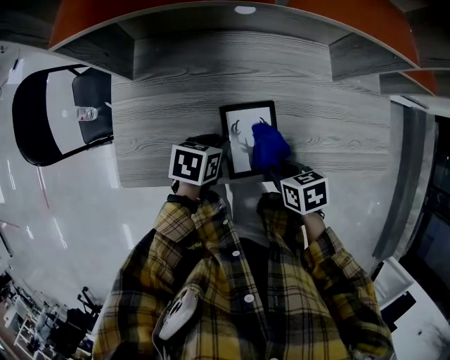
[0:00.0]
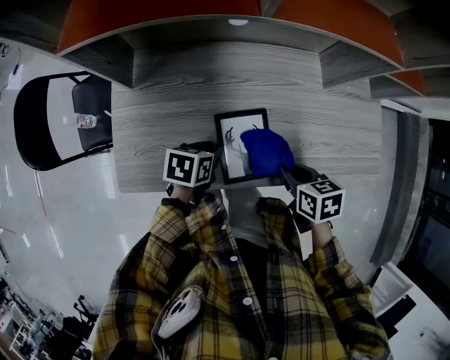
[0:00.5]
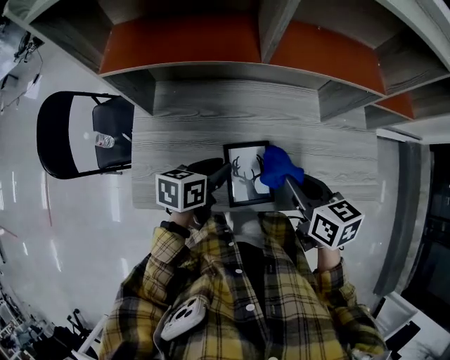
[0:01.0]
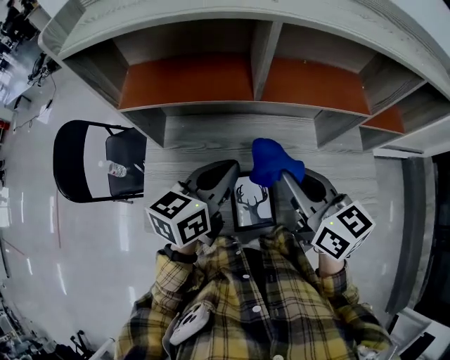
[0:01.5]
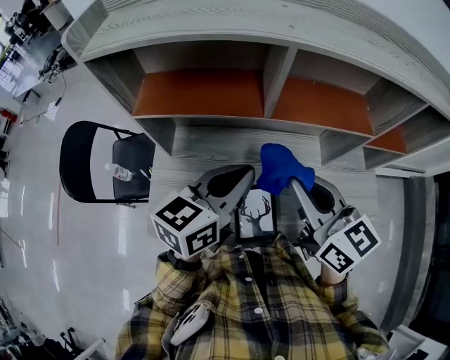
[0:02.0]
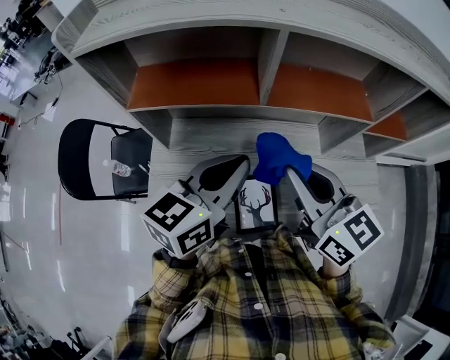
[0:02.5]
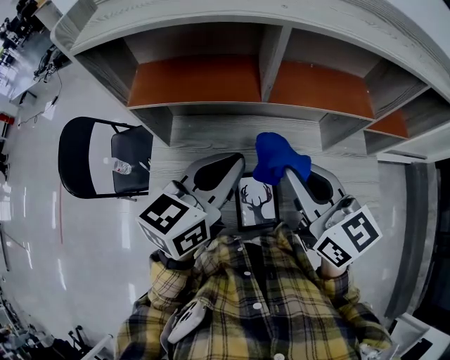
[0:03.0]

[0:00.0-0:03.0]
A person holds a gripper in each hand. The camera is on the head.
0:00.0 to 0:01.5: The right gripper shifts roughly 35 cm upward and forward, and angles its fingers upward, by some 50 degrees. The left gripper shifts about 30 cm upward, tilts its fingers approximately 40 degrees upward, and closes.
0:01.5 to 0:03.0: The left gripper travels upward by about 5 cm.

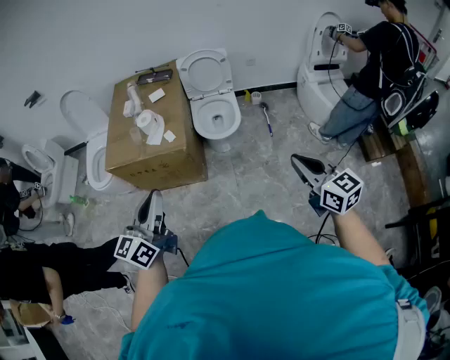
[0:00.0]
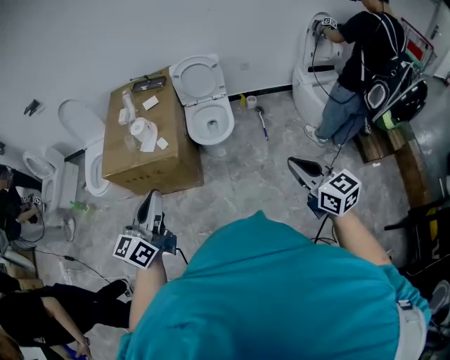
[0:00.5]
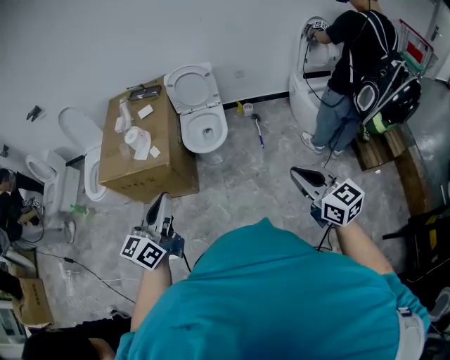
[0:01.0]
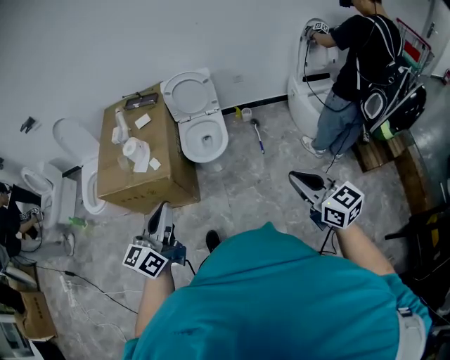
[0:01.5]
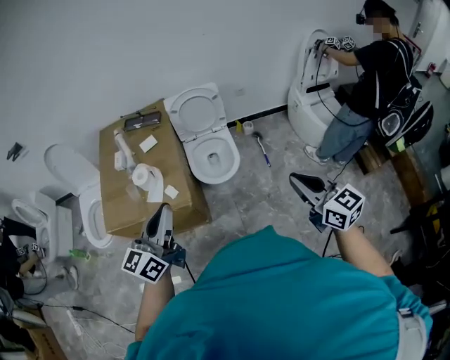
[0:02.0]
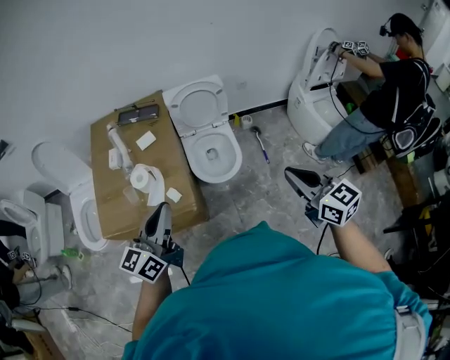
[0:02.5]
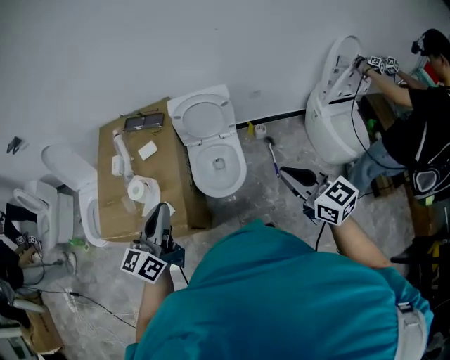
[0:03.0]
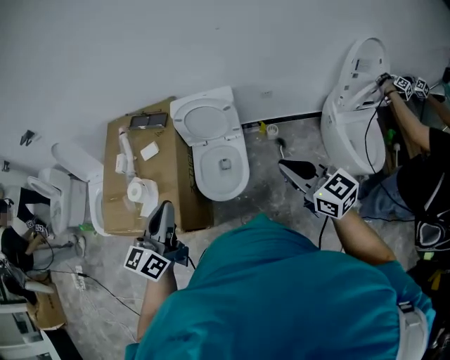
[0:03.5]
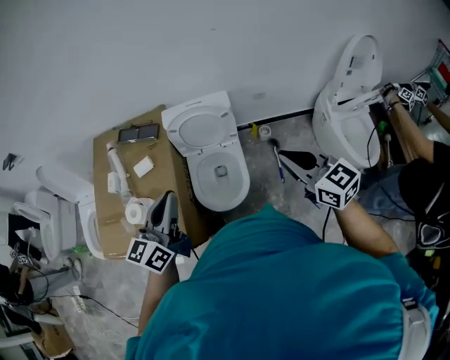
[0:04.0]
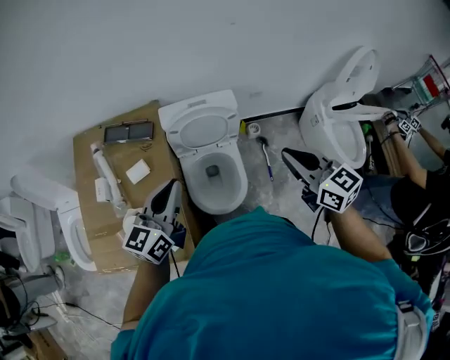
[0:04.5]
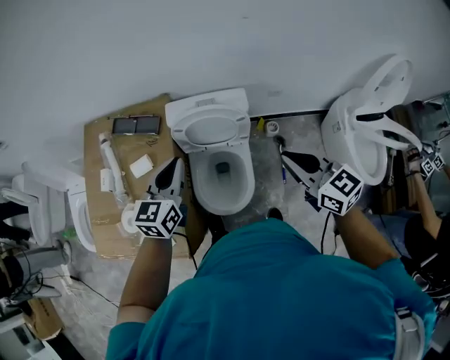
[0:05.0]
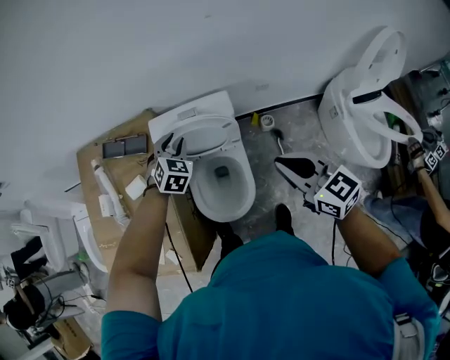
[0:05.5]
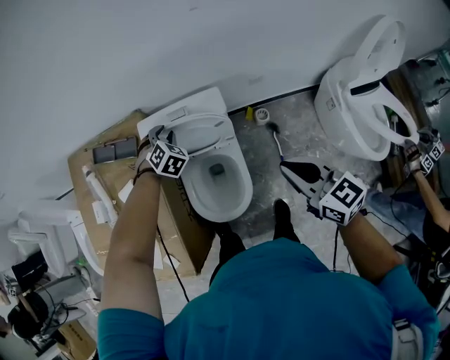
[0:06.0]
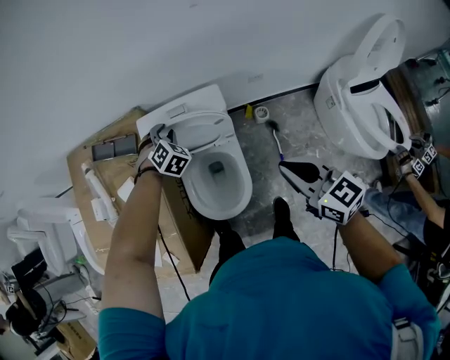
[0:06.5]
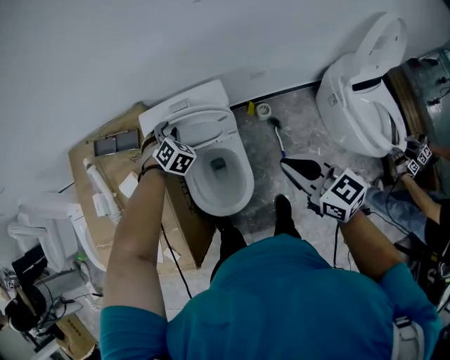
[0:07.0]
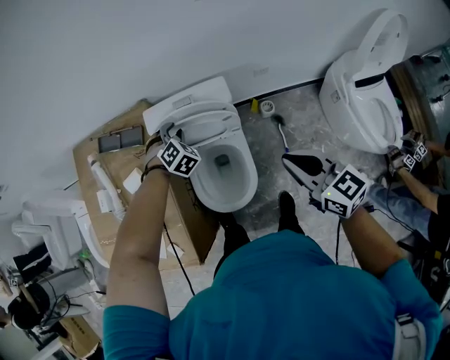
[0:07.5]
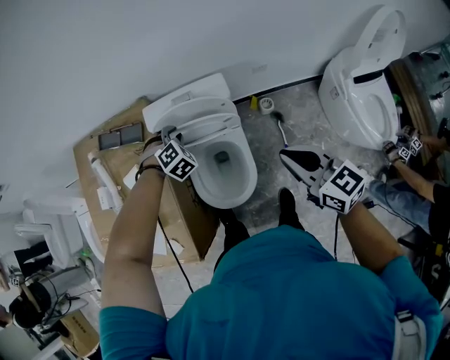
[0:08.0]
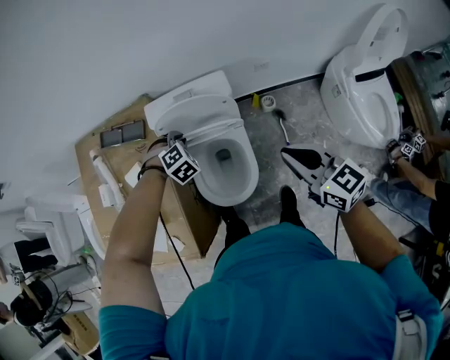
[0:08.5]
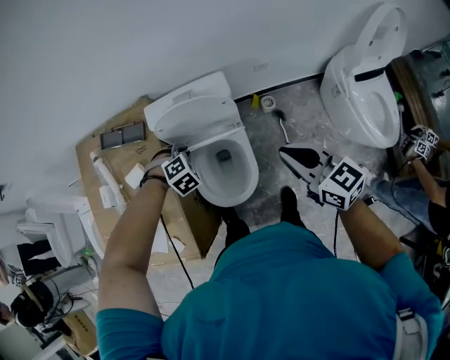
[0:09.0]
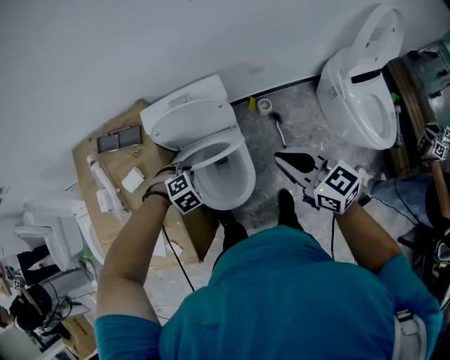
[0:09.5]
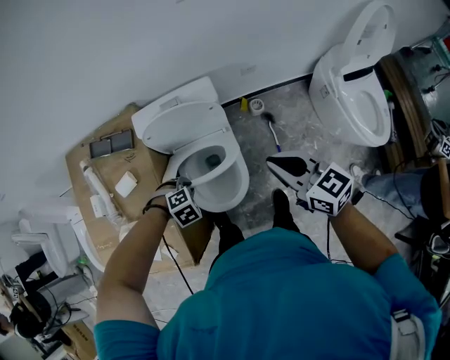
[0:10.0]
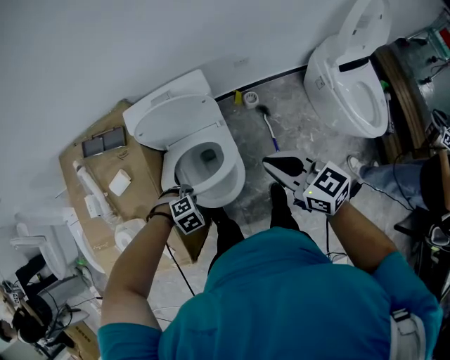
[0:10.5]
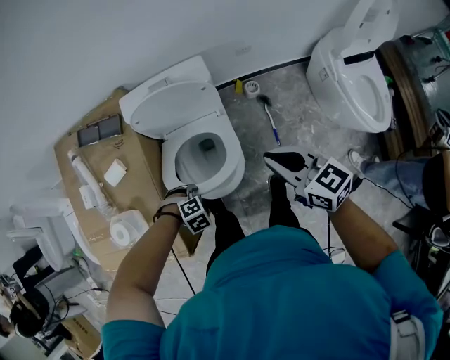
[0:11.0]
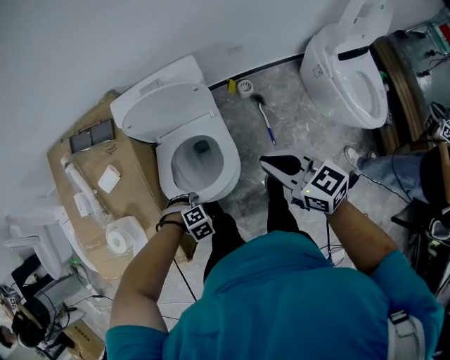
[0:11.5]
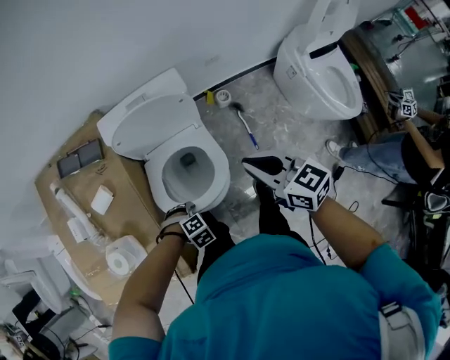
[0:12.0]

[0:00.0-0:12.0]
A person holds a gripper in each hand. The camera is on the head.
0:00.0 to 0:02.0: Both grippers travel together forward, approximately 20 cm.
0:02.0 to 0:04.0: The left gripper heads forward and to the right, covering about 35 cm, while the right gripper travels forward by approximately 40 cm.
0:04.0 to 0:06.0: The left gripper is displaced forward and downward by about 50 cm, angles its fingers downward, by roughly 50 degrees, and opens, while the right gripper is displaced forward and downward by about 20 cm.
0:06.0 to 0:08.0: The left gripper is displaced backward by some 5 cm.
0:08.0 to 0:10.0: The left gripper ends up approximately 20 cm from where it was, and rotates some 30 degrees.
0:10.0 to 0:12.0: The right gripper is displaced downward by some 5 cm; the left gripper ends up approximately 15 cm from where it was.

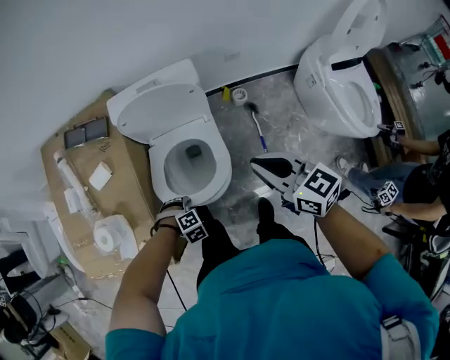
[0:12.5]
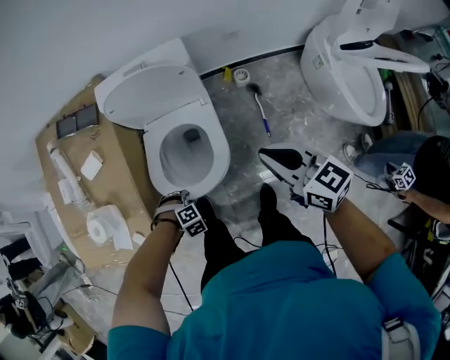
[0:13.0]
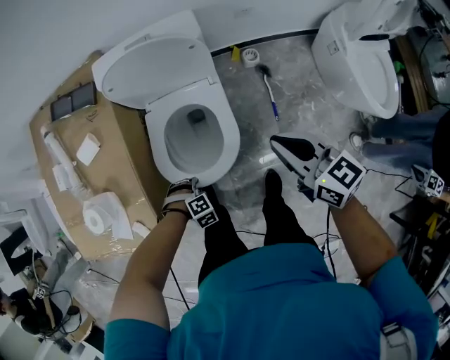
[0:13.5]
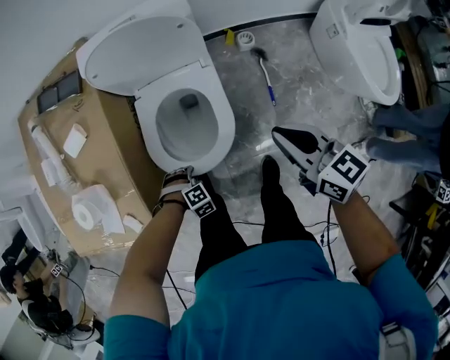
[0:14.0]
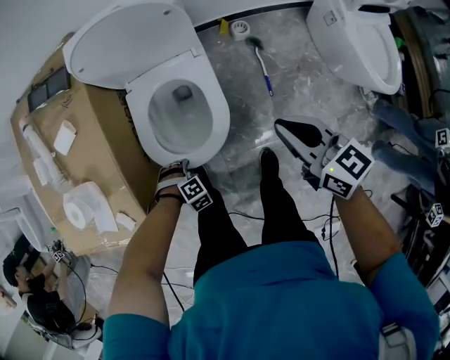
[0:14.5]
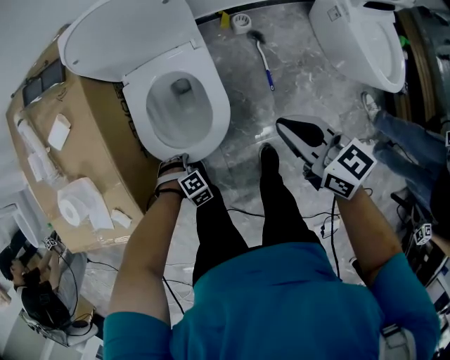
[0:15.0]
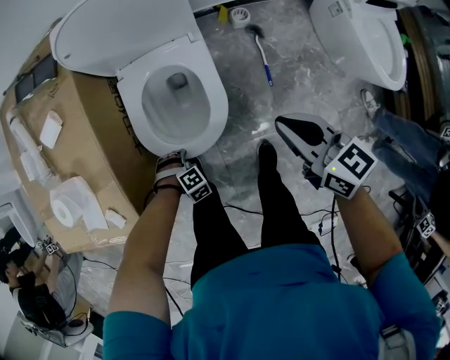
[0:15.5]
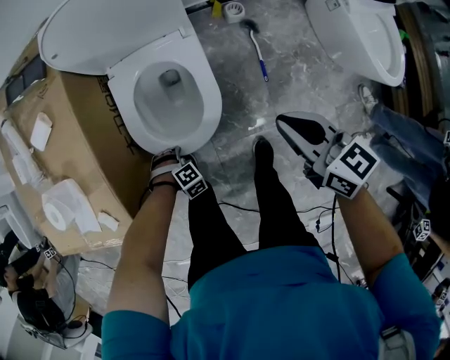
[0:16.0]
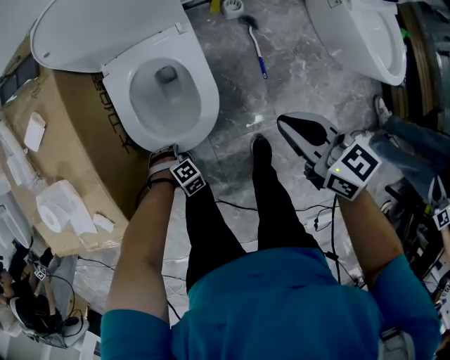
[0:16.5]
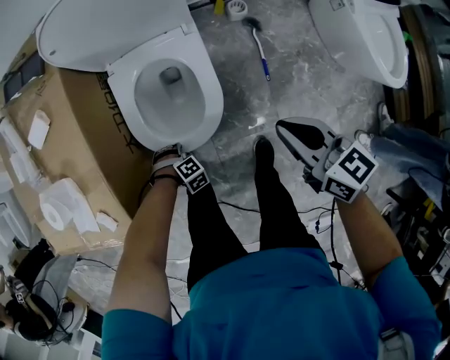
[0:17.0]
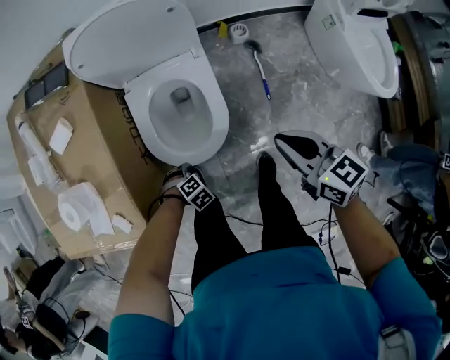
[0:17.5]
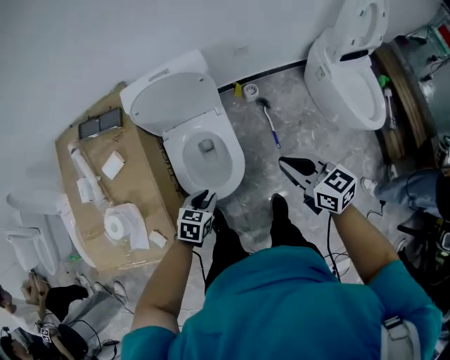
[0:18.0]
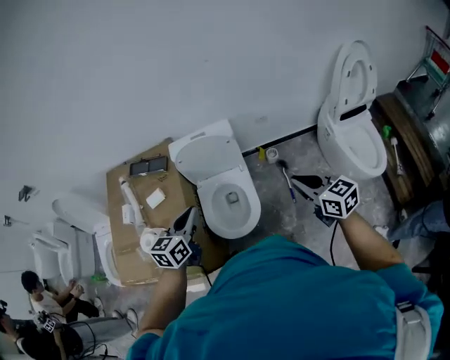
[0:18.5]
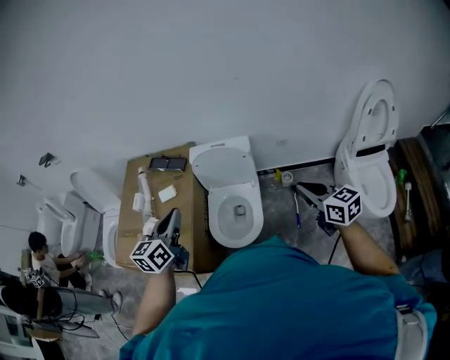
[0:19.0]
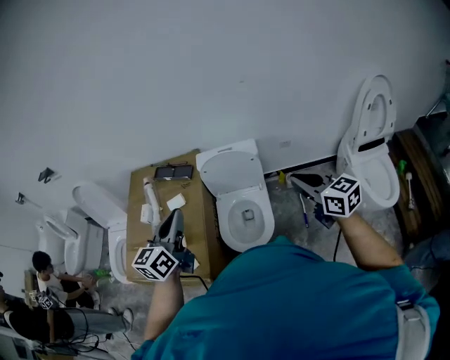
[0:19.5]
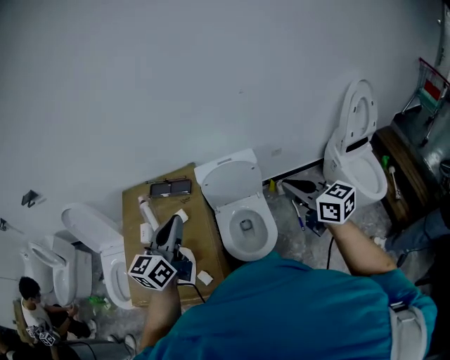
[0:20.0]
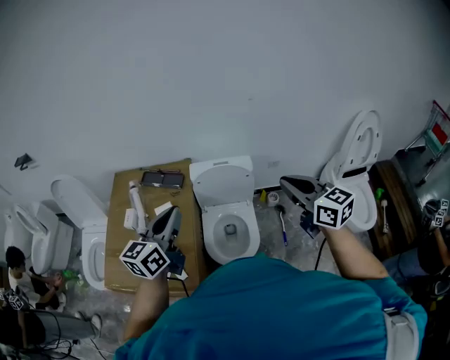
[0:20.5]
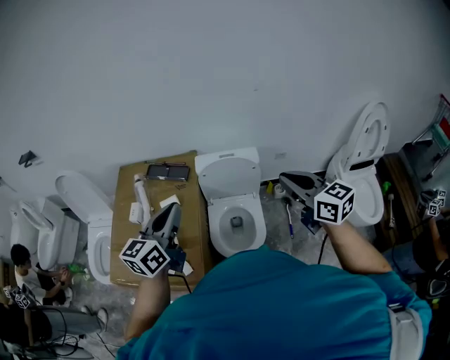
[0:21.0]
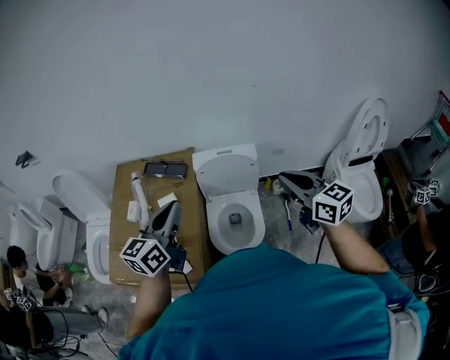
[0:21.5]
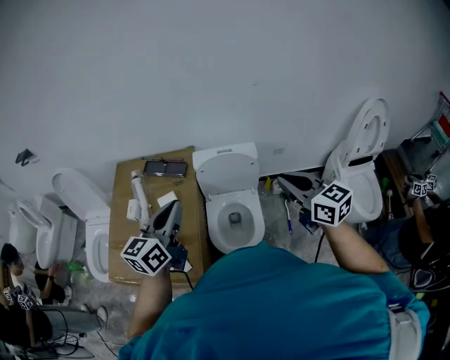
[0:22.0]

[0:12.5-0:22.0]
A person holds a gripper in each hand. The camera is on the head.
0:12.5 to 0:14.5: Both grippers travel together downward, about 15 cm.
0:14.5 to 0:16.5: Both grippers travel together downward, approximately 10 cm.
0:16.5 to 0:18.0: The right gripper is displaced upward by about 15 cm; the left gripper goes approximately 30 cm upward, and swivels roughly 70 degrees.
0:18.0 to 0:20.0: The right gripper travels upward and to the left by approximately 30 cm; the left gripper shifts about 50 cm upward and to the left, tips its fingers upward by about 50 degrees, and closes up.
0:20.0 to 0:22.0: The grippers move only a little.

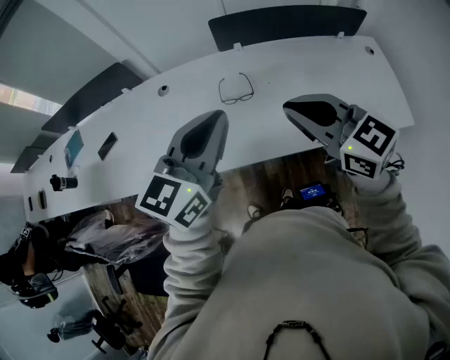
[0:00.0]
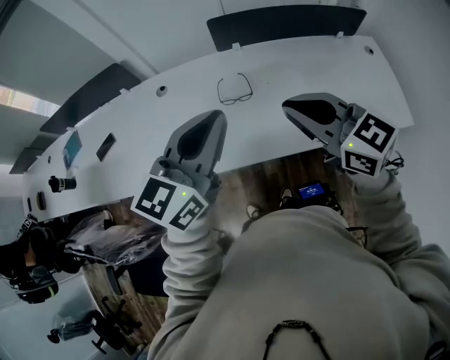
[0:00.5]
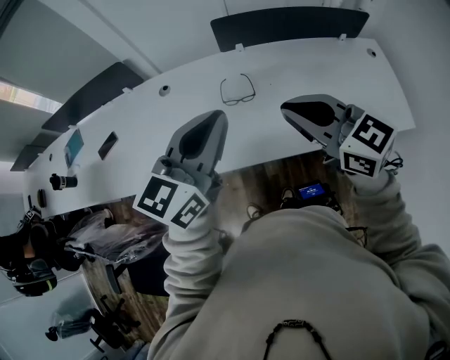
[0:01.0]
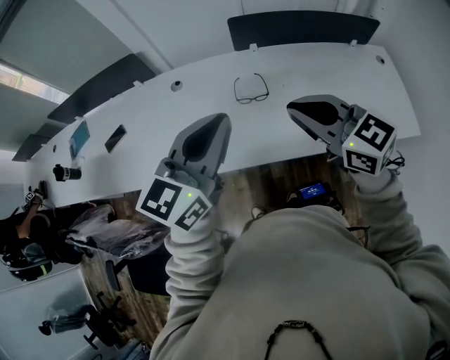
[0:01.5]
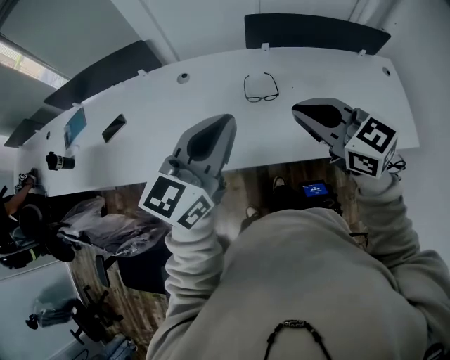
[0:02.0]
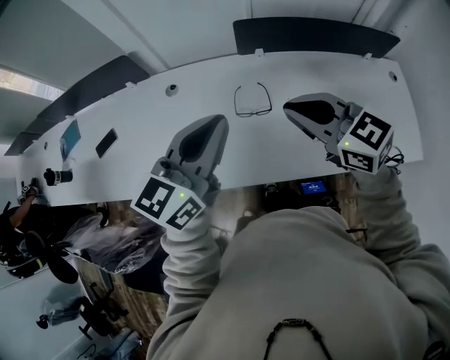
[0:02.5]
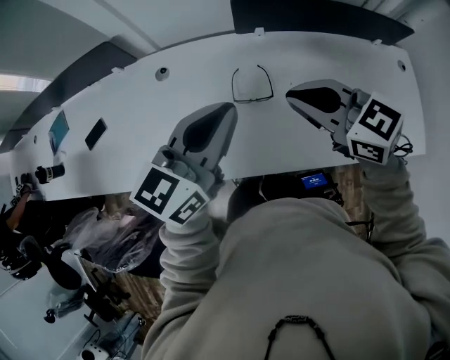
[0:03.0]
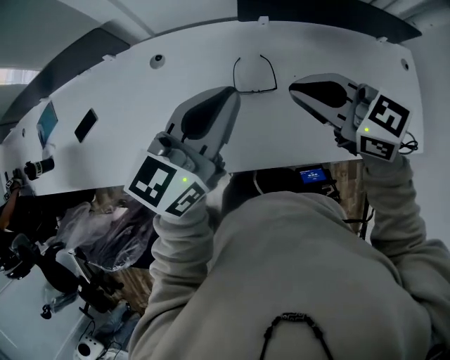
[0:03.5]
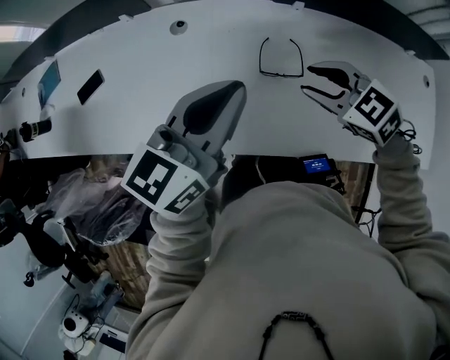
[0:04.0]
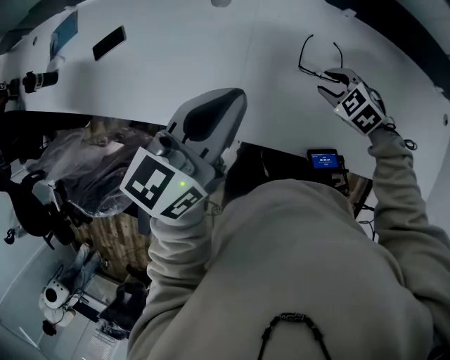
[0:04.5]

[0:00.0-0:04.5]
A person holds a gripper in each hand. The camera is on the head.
0:00.0 to 0:02.0: Both grippers travel together to the left, about 10 cm.
0:02.0 to 0:04.5: The right gripper shifts roughly 35 cm downward and forward, points its fingers approximately 40 degrees further downward, and opens; the left gripper shifts roughly 20 cm forward, downward and to the left, and turns by about 20 degrees.
